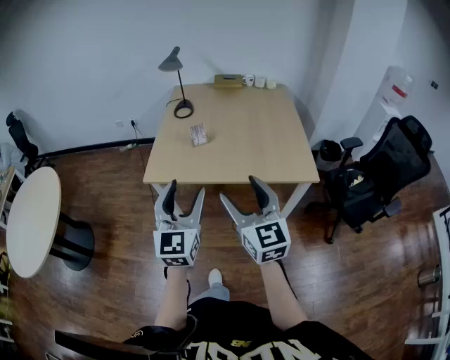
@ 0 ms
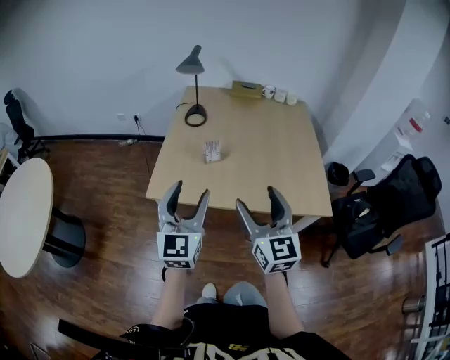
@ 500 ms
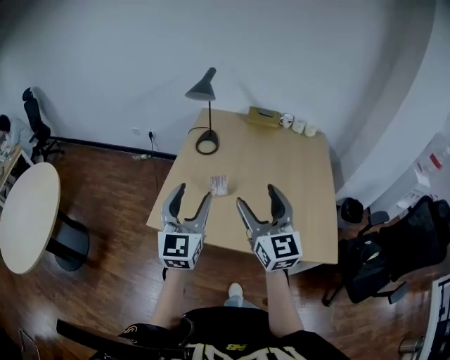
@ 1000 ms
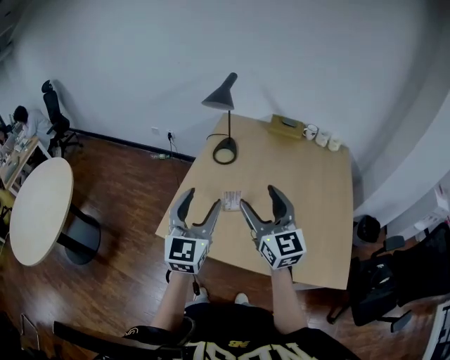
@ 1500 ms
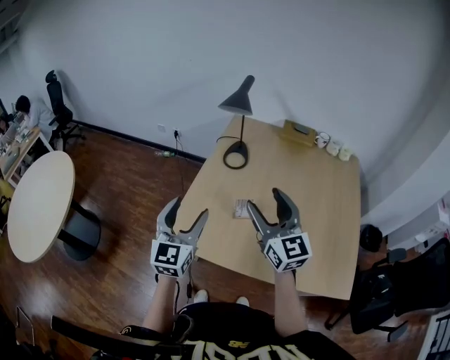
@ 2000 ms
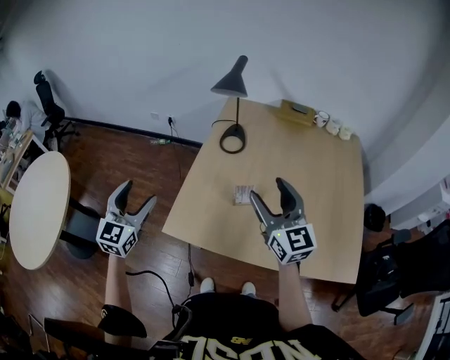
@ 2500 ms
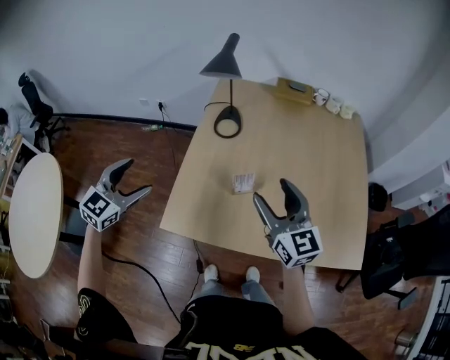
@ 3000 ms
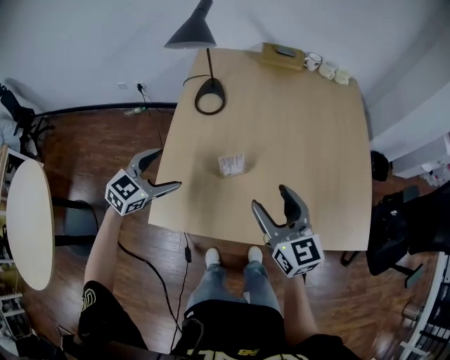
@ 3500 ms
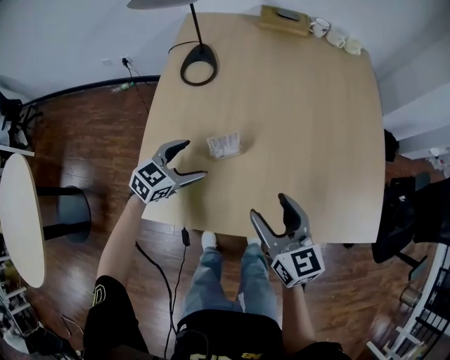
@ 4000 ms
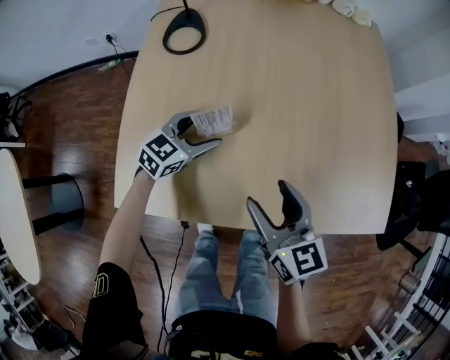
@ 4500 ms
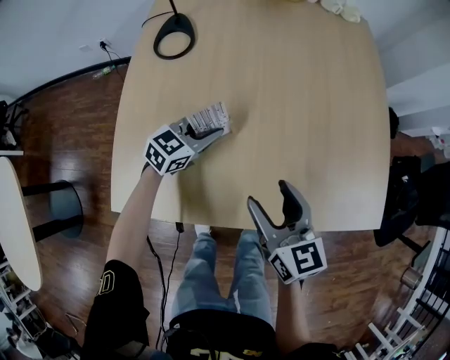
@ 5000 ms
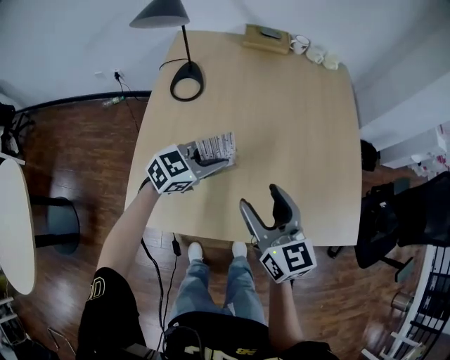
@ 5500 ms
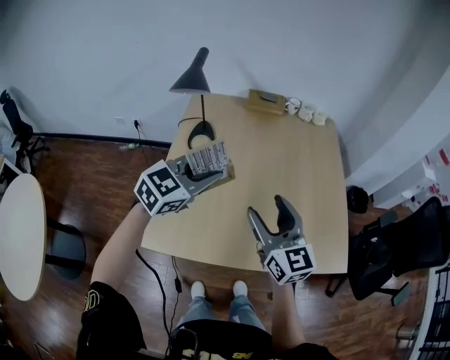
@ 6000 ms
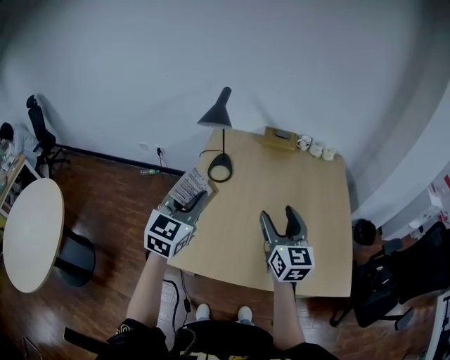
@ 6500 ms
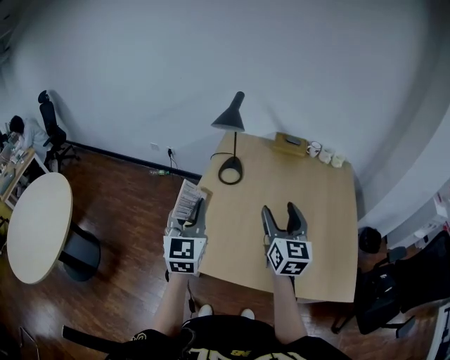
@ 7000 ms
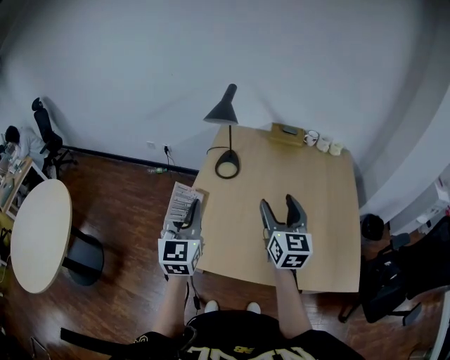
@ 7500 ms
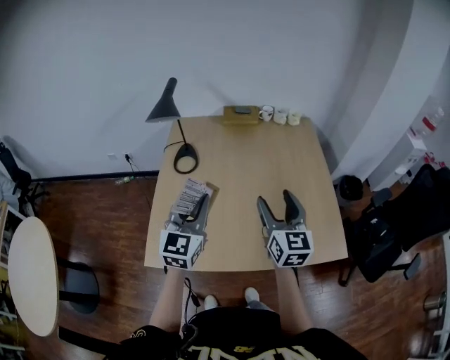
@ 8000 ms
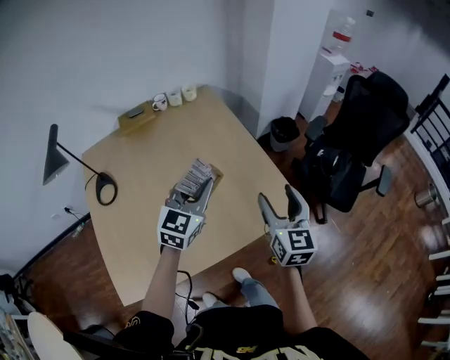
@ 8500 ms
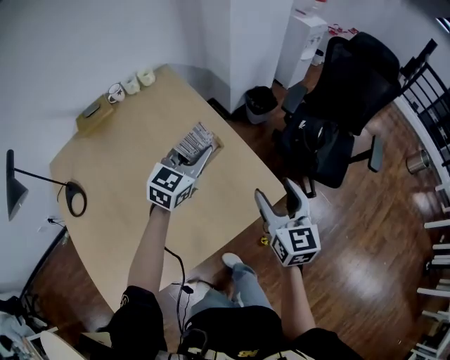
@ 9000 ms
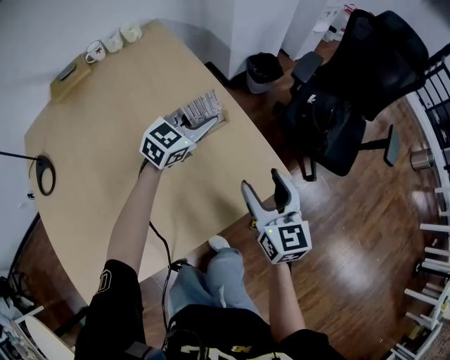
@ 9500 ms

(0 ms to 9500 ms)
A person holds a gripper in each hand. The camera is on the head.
0 ms - 2000 ms: Both grippers are carried forward, about 40 cm.
2000 ms - 4000 ms: The grippers both shift downward by roughly 25 cm. The left gripper angles its fingers downward, by about 30 degrees; the right gripper rotates some 30 degrees.
4000 ms - 5500 ms: The right gripper heads upward, covering about 5 cm. The left gripper shifts approximately 15 cm to the right and upward, and closes.
5500 ms - 7500 ms: The right gripper travels upward by approximately 15 cm. The left gripper travels upward by approximately 25 cm, and turns by some 70 degrees.
7500 ms - 9500 ms: Both grippers are carried approximately 60 cm. The left gripper rotates about 90 degrees, while the right gripper changes its angle by about 40 degrees.

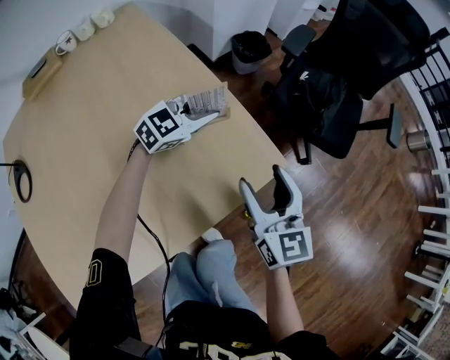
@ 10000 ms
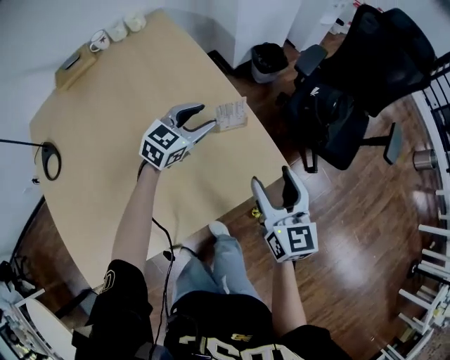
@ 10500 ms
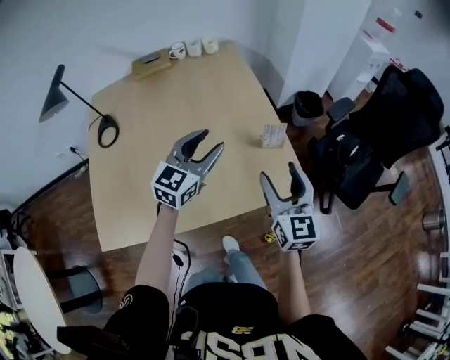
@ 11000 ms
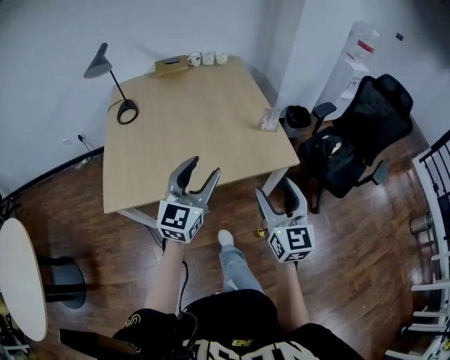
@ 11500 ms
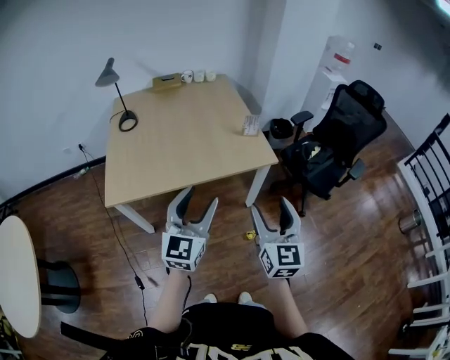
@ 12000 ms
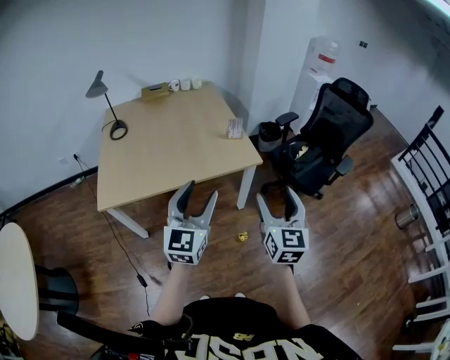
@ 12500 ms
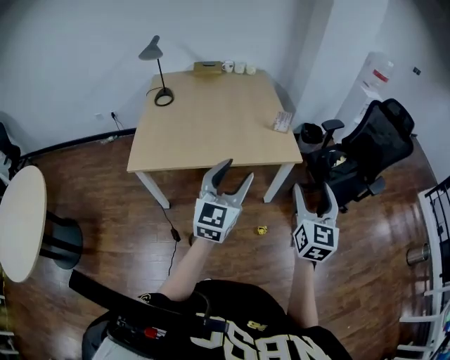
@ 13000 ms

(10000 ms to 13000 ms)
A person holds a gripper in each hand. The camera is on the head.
10000 ms - 11500 ms: The left gripper ends up roughly 60 cm from where it was, rotates roughly 70 degrees, and opens its fingers. Meanwhile the right gripper moves roughly 35 cm, and turns by some 20 degrees.
11500 ms - 13000 ms: The right gripper is displaced to the right, backward and upward by approximately 20 cm; the left gripper heads backward and to the right, covering about 20 cm.

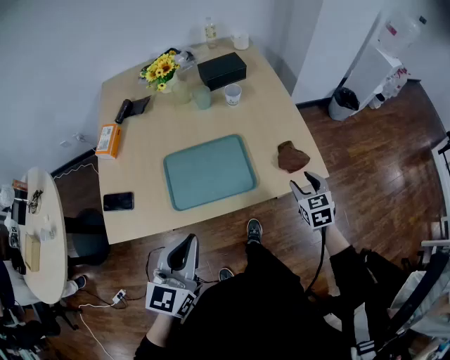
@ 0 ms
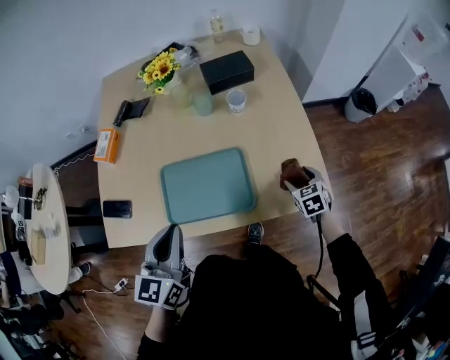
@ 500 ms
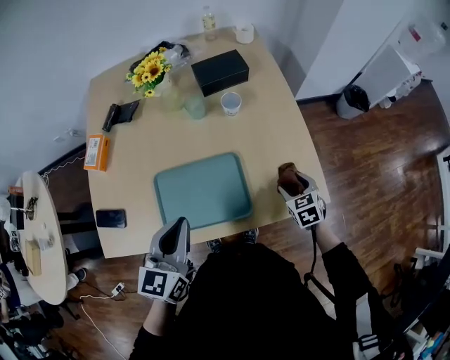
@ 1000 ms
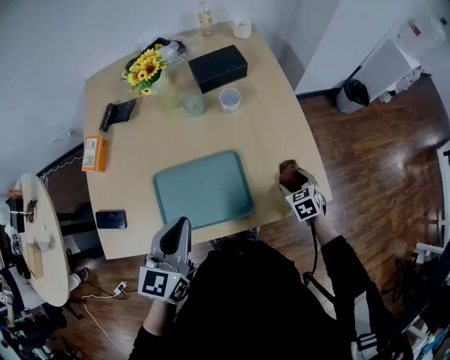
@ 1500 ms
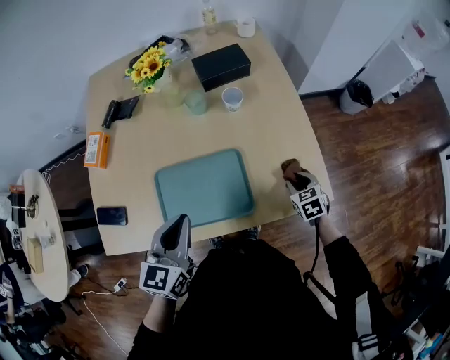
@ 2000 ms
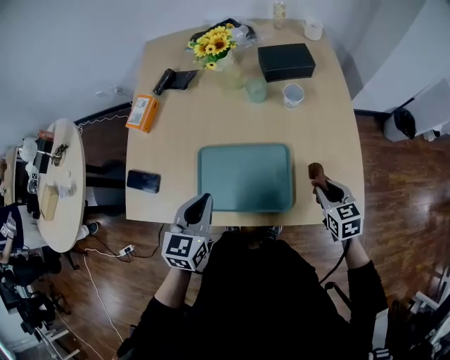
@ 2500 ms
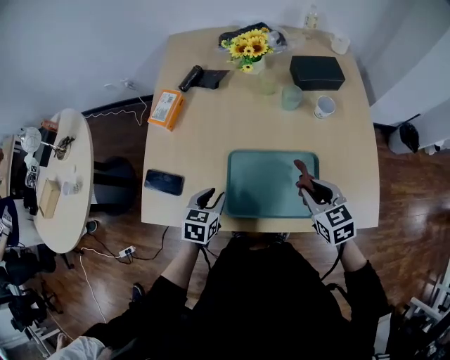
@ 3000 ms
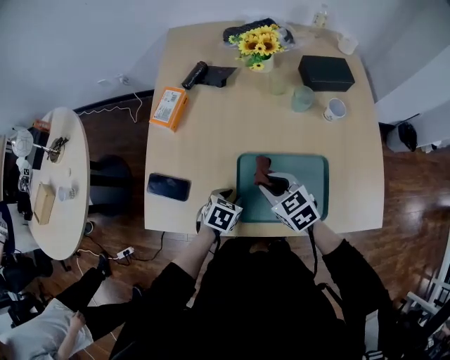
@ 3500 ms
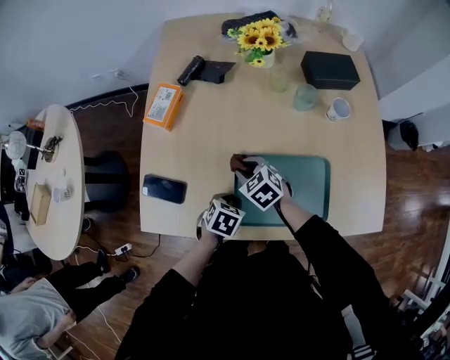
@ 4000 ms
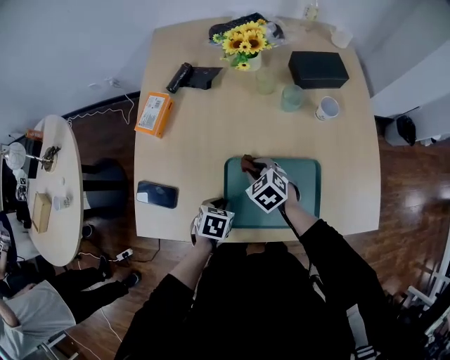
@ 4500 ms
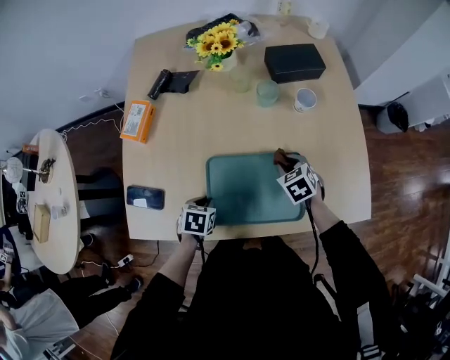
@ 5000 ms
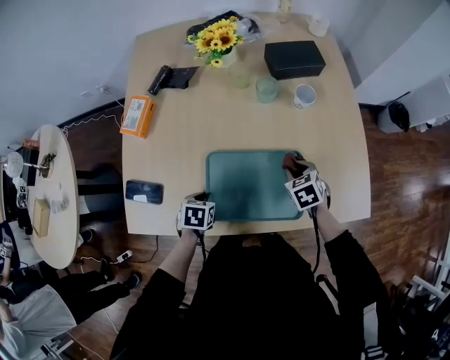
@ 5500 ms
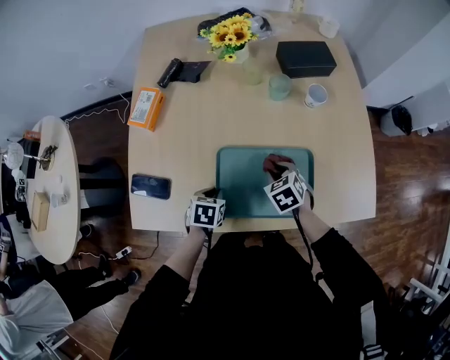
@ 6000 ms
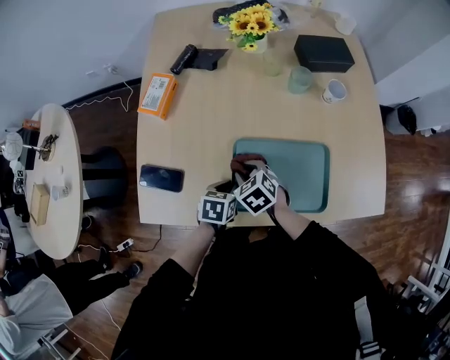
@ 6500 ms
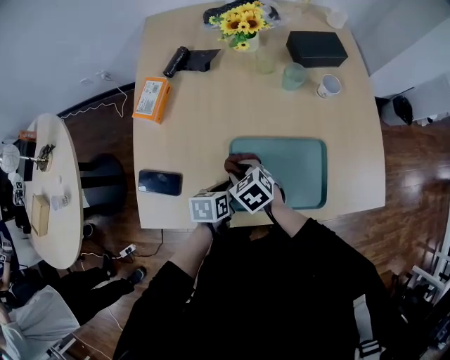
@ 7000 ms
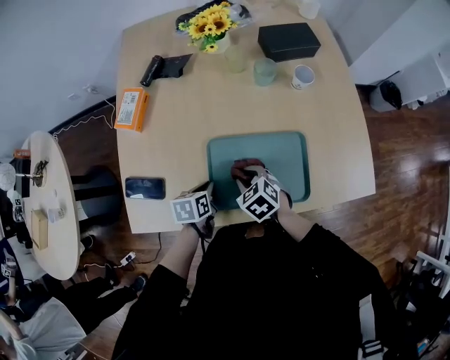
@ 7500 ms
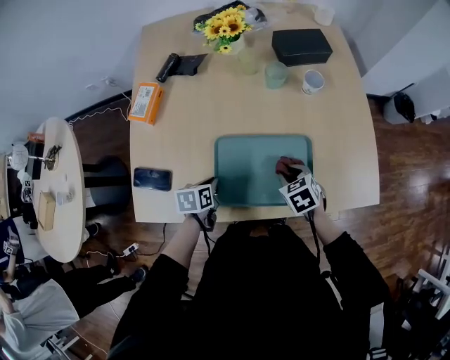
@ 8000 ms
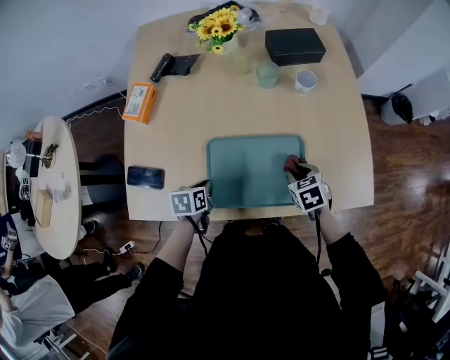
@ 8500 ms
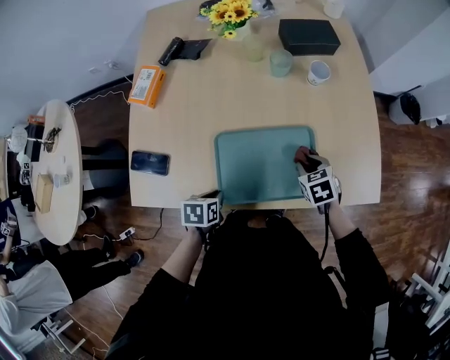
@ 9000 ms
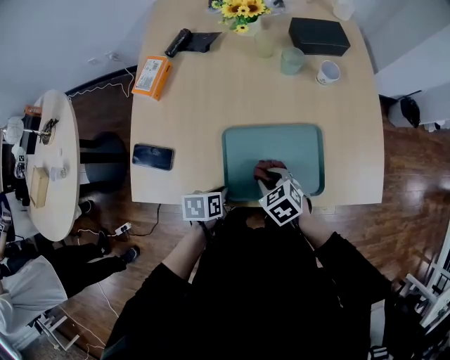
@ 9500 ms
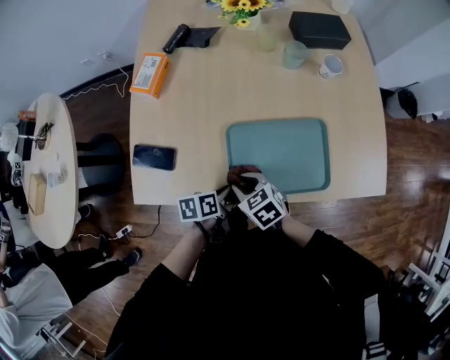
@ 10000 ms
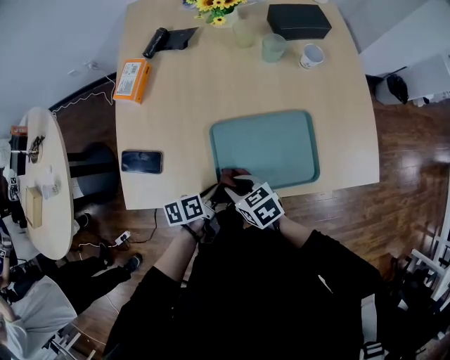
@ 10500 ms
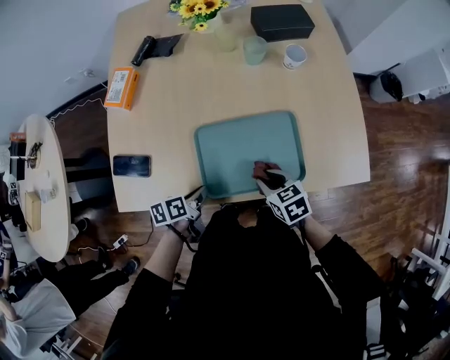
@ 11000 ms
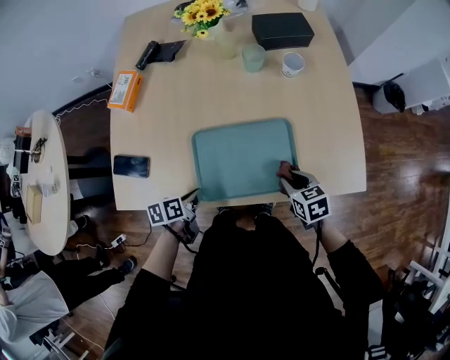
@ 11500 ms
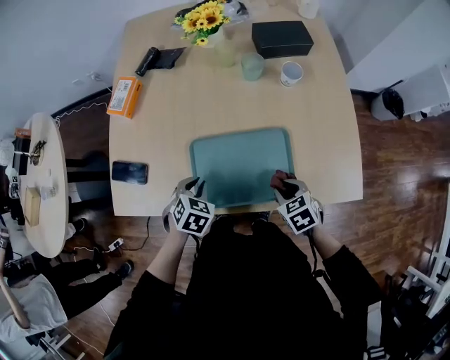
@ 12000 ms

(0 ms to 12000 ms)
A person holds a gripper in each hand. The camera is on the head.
0 ms - 2000 ms: The left gripper is displaced forward by approximately 15 cm. Meanwhile the right gripper is displaced forward and downward by roughly 15 cm.
2000 ms - 4000 ms: The right gripper travels to the left by some 50 cm, and changes its angle by about 40 degrees; the left gripper is displaced downward and to the left by approximately 30 cm, and points its fingers approximately 40 degrees further downward.
4000 ms - 6000 ms: The right gripper shifts approximately 20 cm to the right, and rotates approximately 20 degrees.
6000 ms - 8000 ms: The left gripper turns by some 20 degrees, while the right gripper travels backward by approximately 5 cm, and goes to the left and returns, roughly 20 cm each way.
8000 ms - 10000 ms: The left gripper travels backward by some 10 cm, and changes its angle by roughly 20 degrees. Meanwhile the right gripper moves to the left and backward, about 20 cm, and turns by approximately 20 degrees.
10000 ms - 12000 ms: The right gripper shifts about 25 cm to the right. The left gripper goes some 5 cm forward, and rotates around the line of its fingers by about 60 degrees, clockwise from behind.

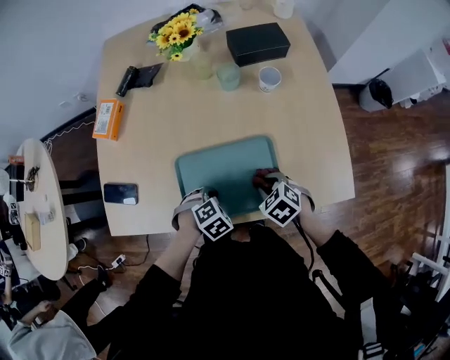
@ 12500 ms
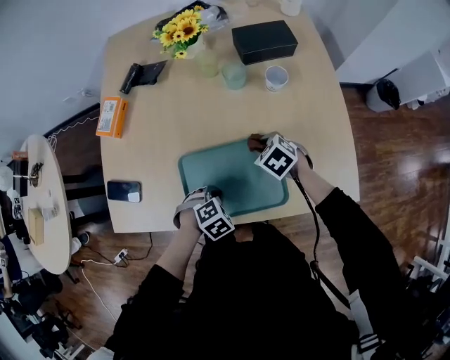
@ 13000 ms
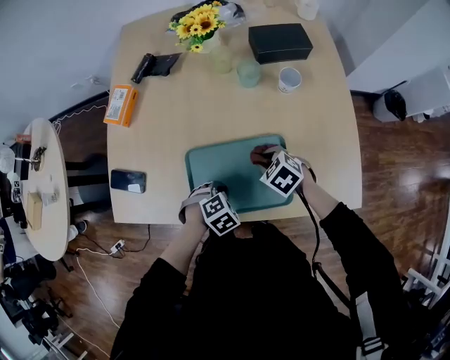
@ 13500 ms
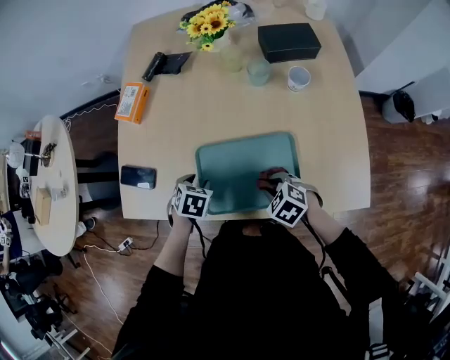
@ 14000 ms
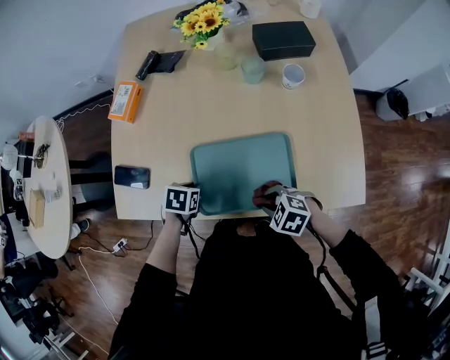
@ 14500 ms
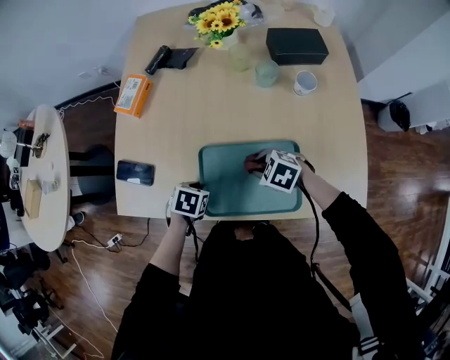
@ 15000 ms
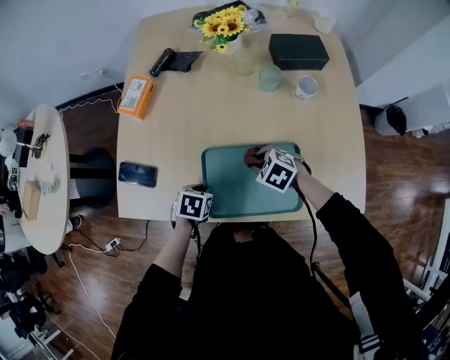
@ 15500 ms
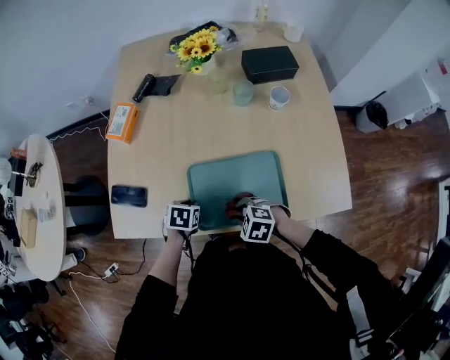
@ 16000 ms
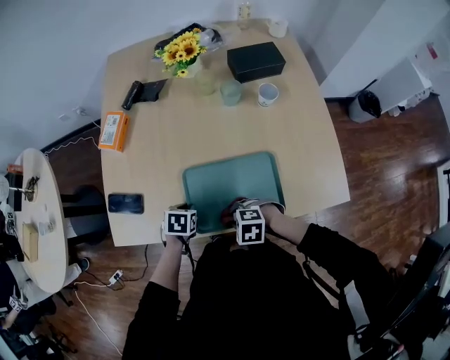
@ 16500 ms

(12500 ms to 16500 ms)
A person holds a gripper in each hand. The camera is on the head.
12500 ms - 14500 ms: The left gripper changes place by approximately 10 cm, rolls counterclockwise, seen from behind, by about 60 degrees, and opens and closes again, while the right gripper changes place by some 10 cm, and changes its angle by some 30 degrees.
